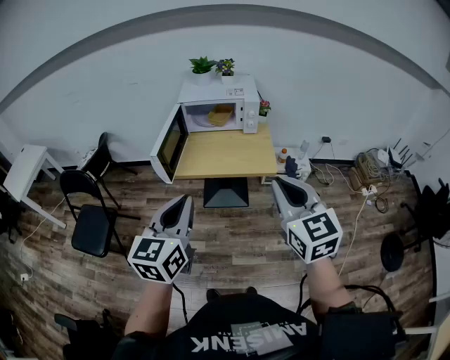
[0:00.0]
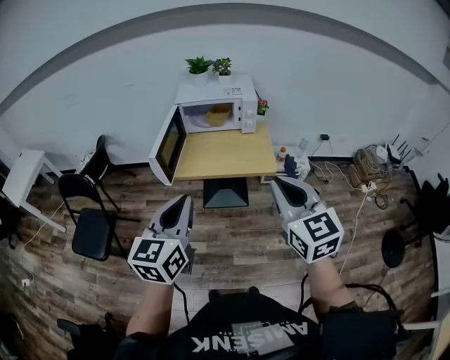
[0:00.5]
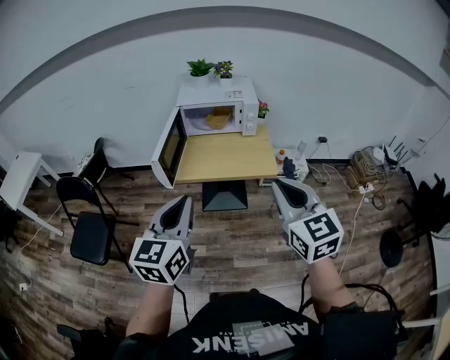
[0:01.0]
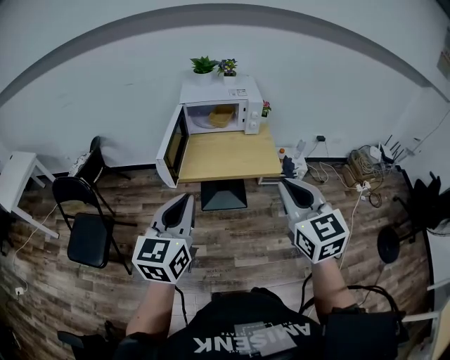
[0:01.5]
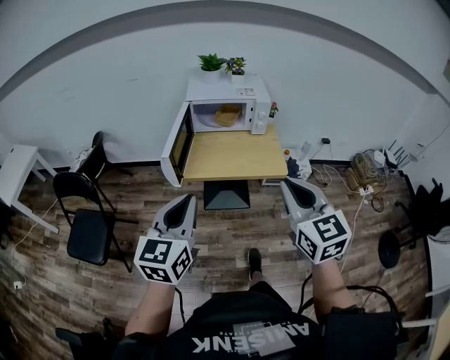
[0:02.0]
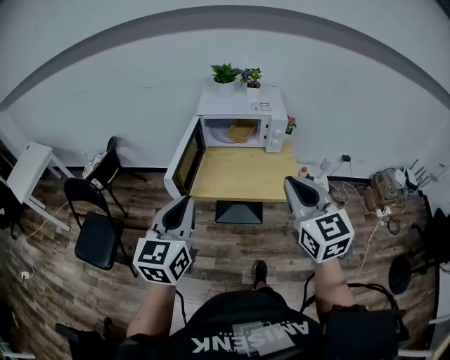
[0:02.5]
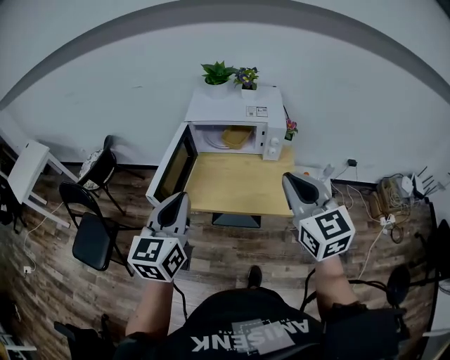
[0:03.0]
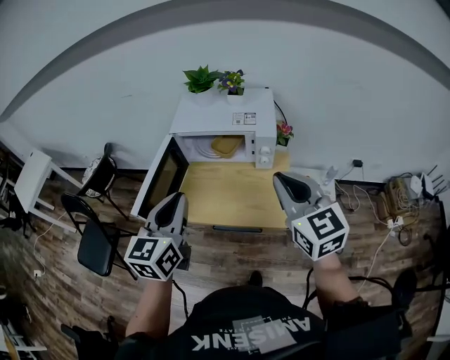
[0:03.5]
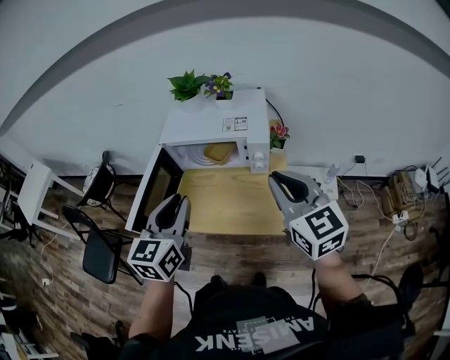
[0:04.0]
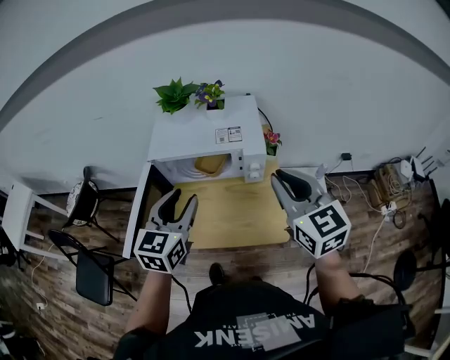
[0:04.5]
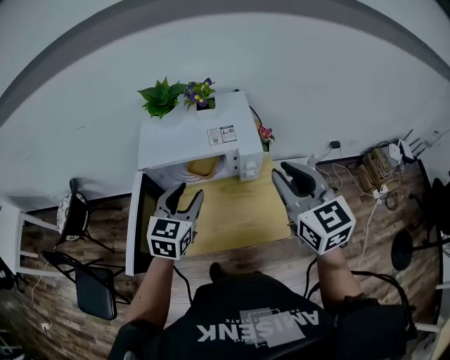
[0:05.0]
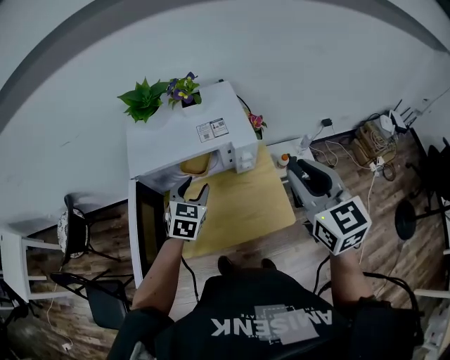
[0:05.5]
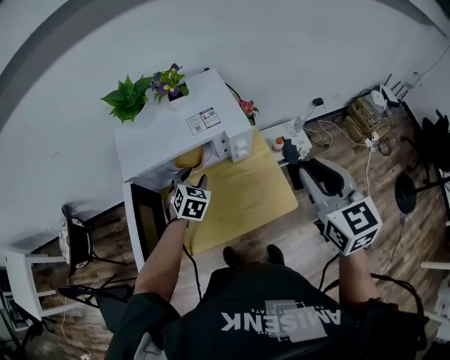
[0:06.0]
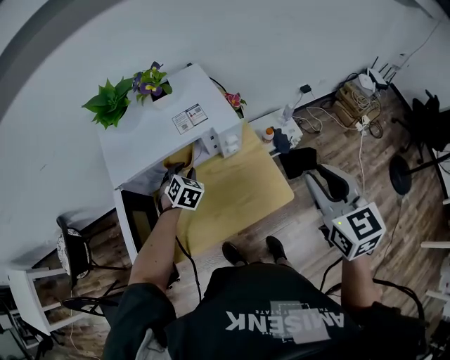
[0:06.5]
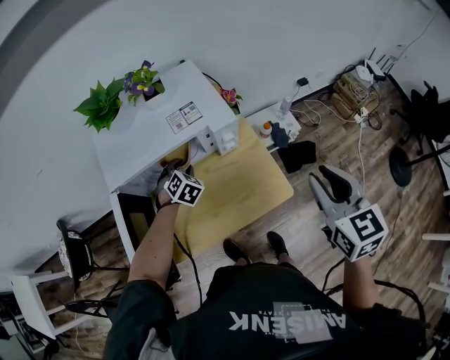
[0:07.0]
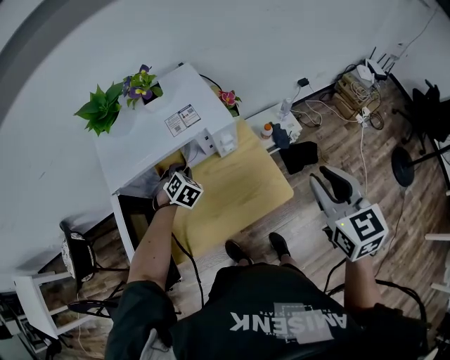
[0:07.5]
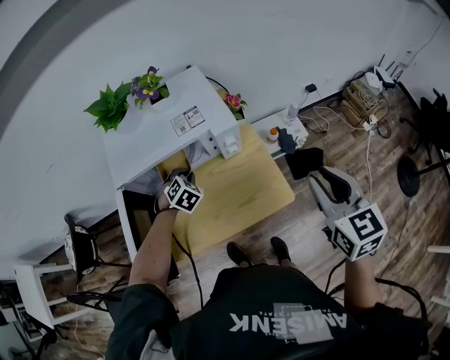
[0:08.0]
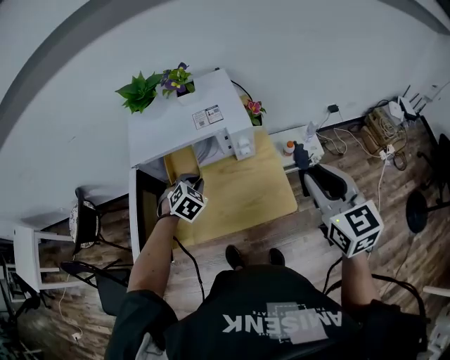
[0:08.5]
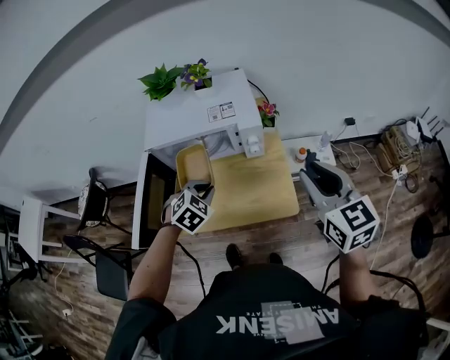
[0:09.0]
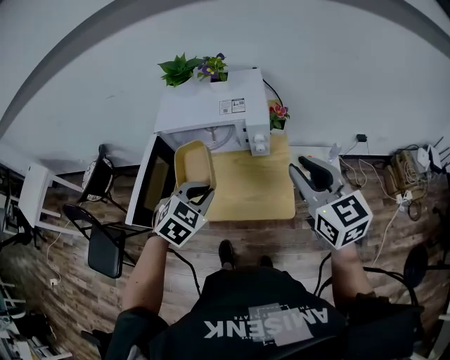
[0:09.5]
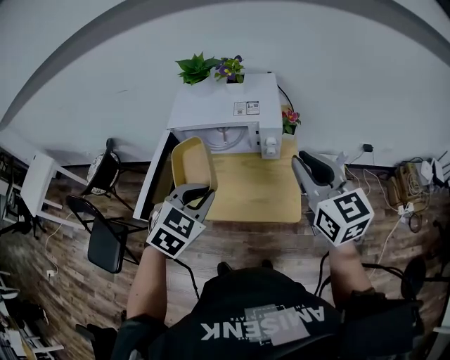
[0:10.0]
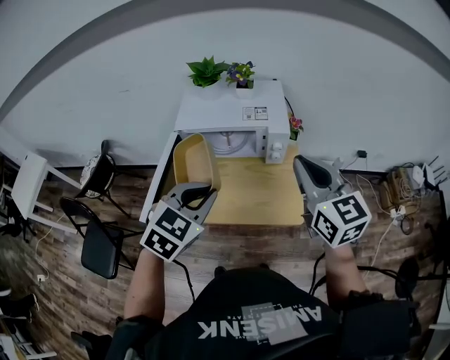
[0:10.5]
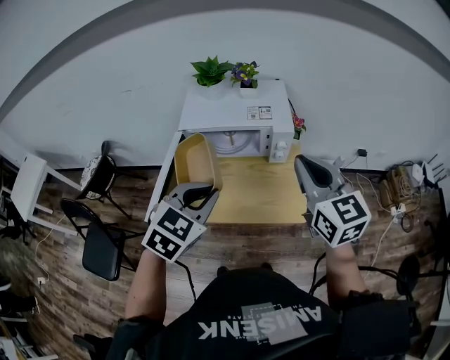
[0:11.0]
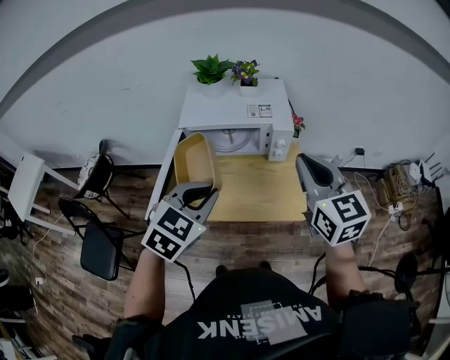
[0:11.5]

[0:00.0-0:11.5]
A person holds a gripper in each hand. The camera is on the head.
0:00.0 to 0:02.0: Both grippers travel together to the left, about 5 cm.
0:02.0 to 0:04.0: Both grippers move forward and to the right, some 35 cm.
0:04.0 to 0:06.0: The left gripper shifts about 35 cm downward and forward, tips its fingers downward by approximately 30 degrees, and opens, while the right gripper ends up about 5 cm from where it was, and swivels approximately 30 degrees.
0:06.0 to 0:07.5: The left gripper travels downward by about 5 cm, changes its angle by about 20 degrees, and closes its fingers; the right gripper changes place by some 5 cm.
0:07.5 to 0:09.5: The left gripper is displaced backward and upward by roughly 30 cm, and turns by some 20 degrees. Meanwhile the right gripper goes approximately 5 cm upward, and changes its angle by roughly 40 degrees.
0:09.5 to 0:11.5: The left gripper goes some 10 cm upward and to the left; the right gripper travels to the left by some 10 cm, and closes its fingers.

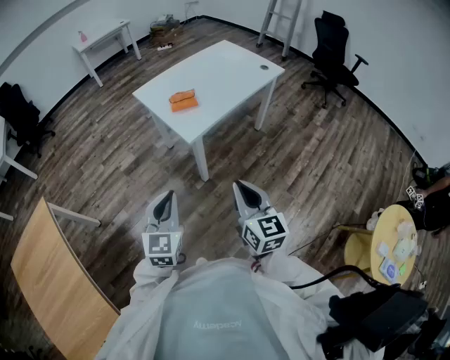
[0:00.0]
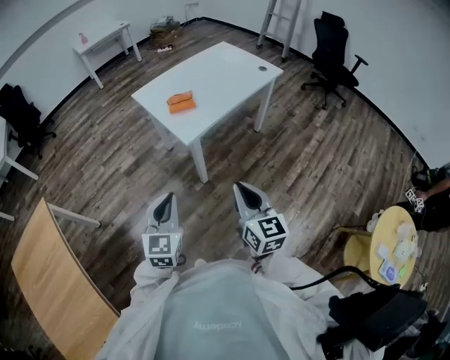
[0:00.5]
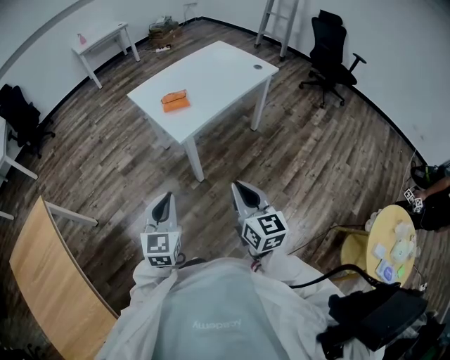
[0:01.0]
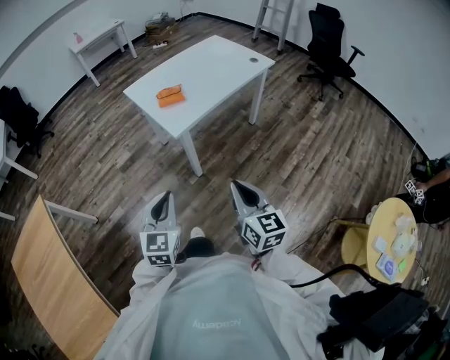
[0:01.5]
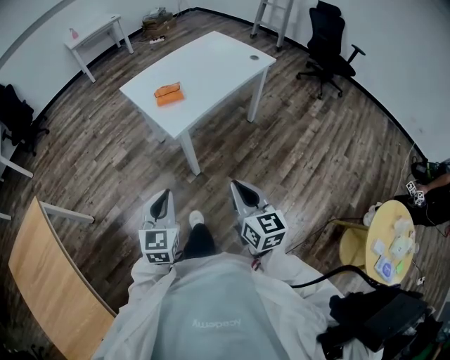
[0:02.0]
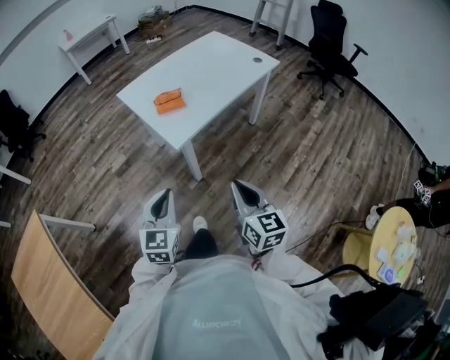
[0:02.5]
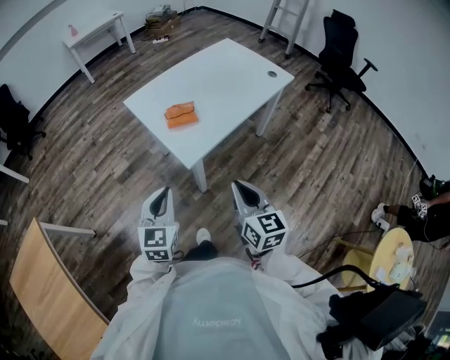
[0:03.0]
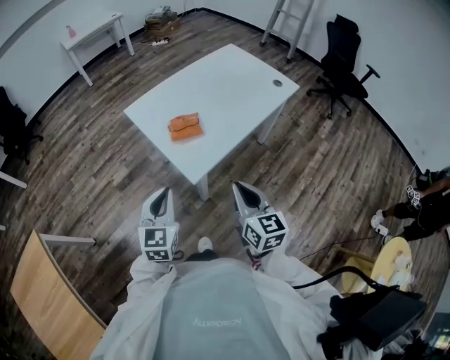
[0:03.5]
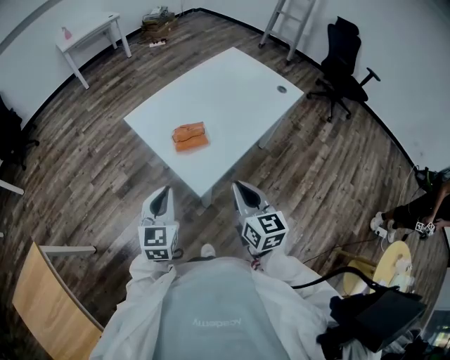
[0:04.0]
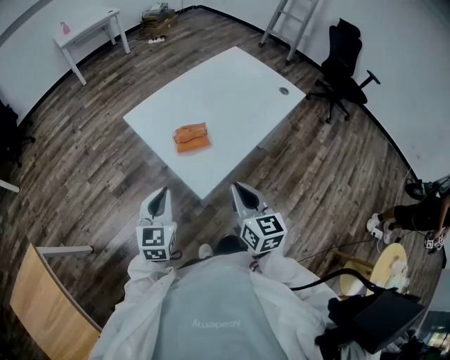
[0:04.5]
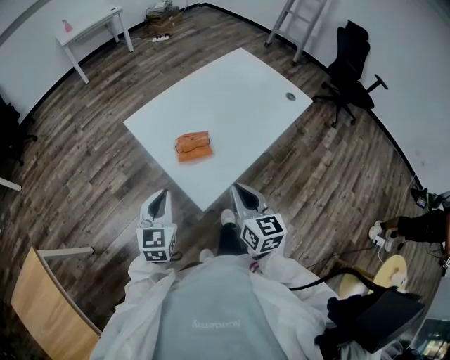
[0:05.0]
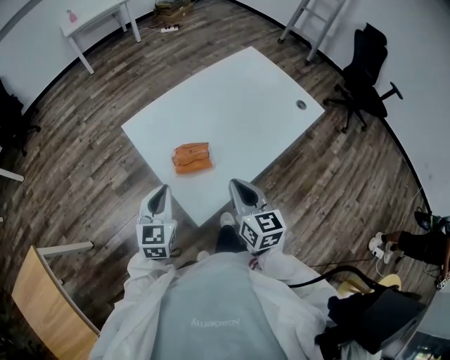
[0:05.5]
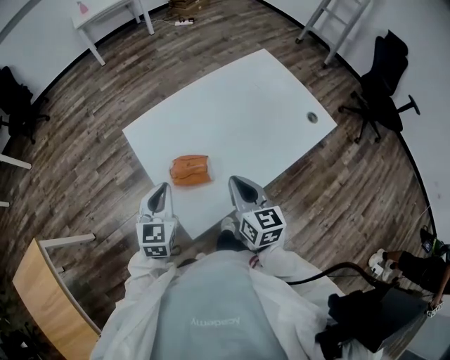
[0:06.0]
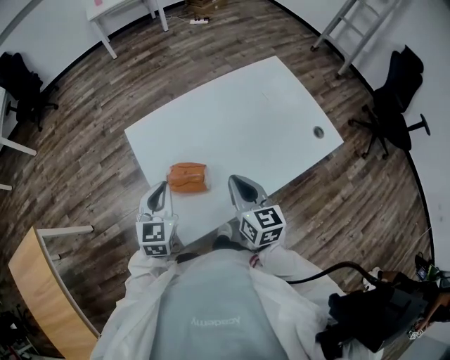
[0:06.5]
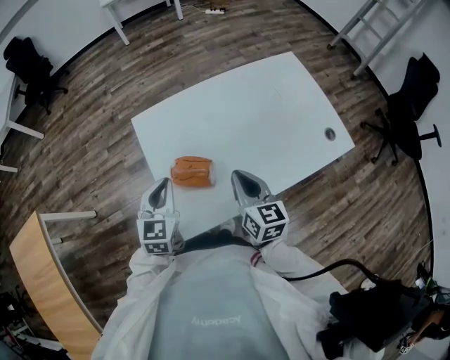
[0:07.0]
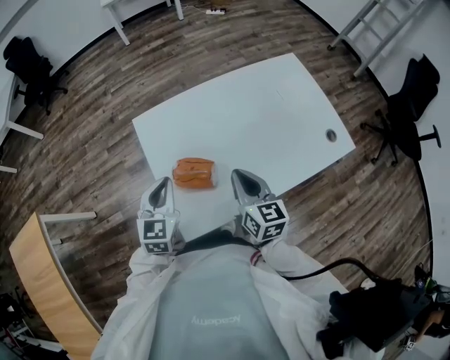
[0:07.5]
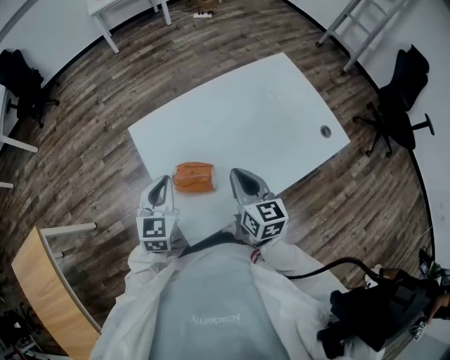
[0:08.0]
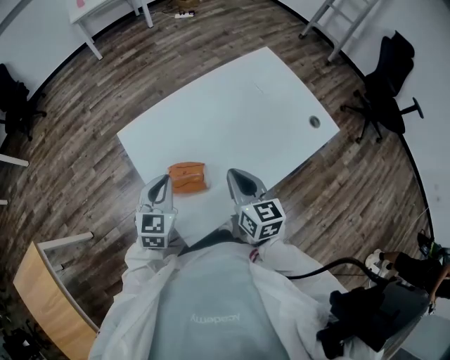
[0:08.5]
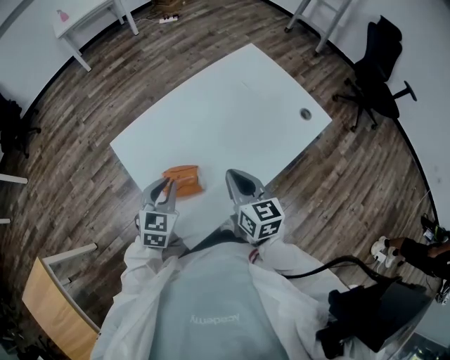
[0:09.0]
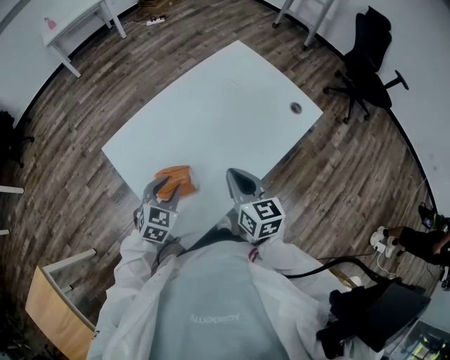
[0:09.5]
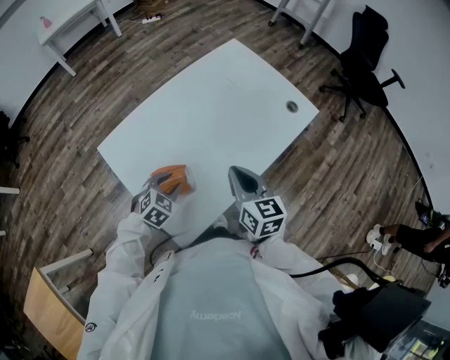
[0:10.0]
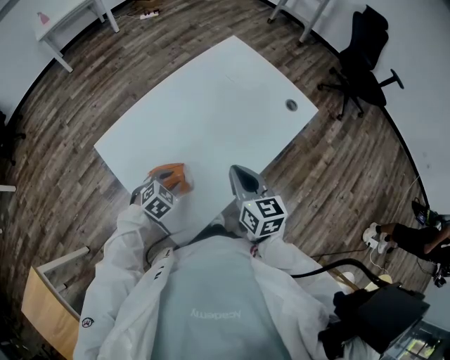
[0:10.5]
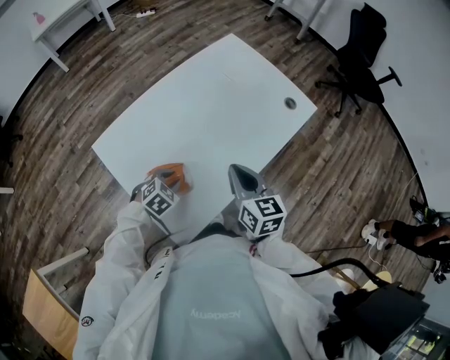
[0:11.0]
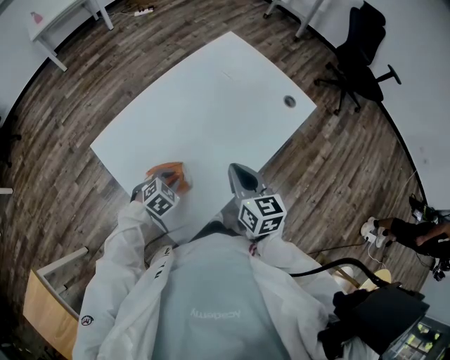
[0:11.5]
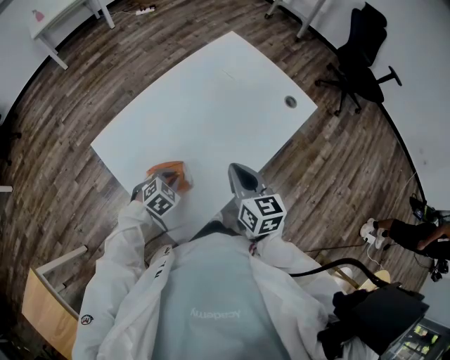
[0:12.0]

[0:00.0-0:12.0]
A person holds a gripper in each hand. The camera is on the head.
0:00.0 to 0:02.0: The right gripper changes place by roughly 5 cm.
0:02.0 to 0:04.0: The two grippers go approximately 25 cm forward.
0:04.0 to 0:06.0: The grippers both shift forward by approximately 15 cm.
0:06.0 to 0:08.0: The right gripper goes some 5 cm forward.
0:08.0 to 0:10.0: The right gripper moves to the right, roughly 5 cm, while the left gripper heads downward and to the right, covering about 15 cm, turns by some 50 degrees, and opens up.
0:10.0 to 0:12.0: The left gripper closes.

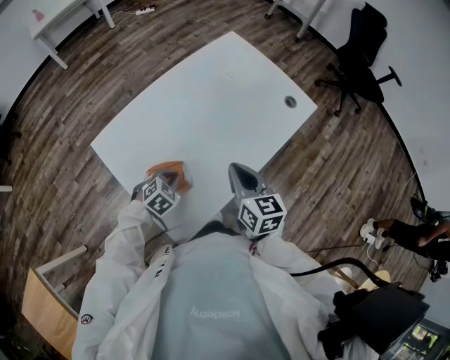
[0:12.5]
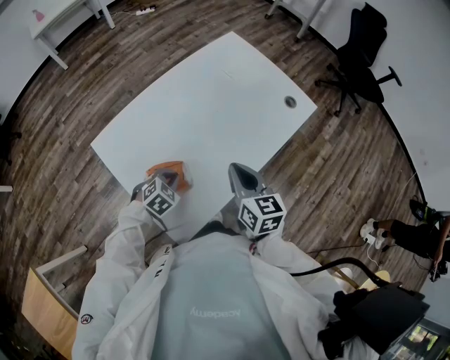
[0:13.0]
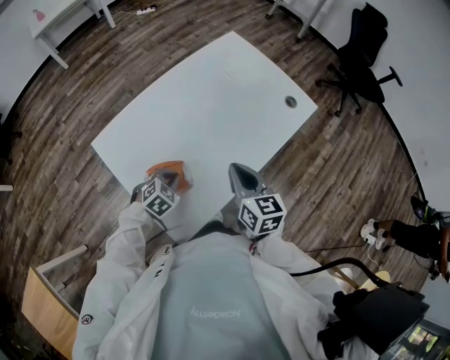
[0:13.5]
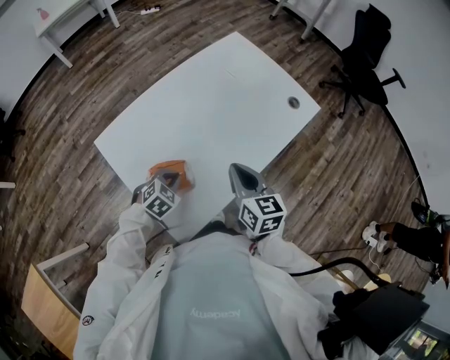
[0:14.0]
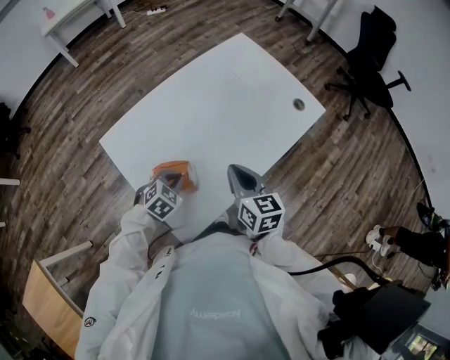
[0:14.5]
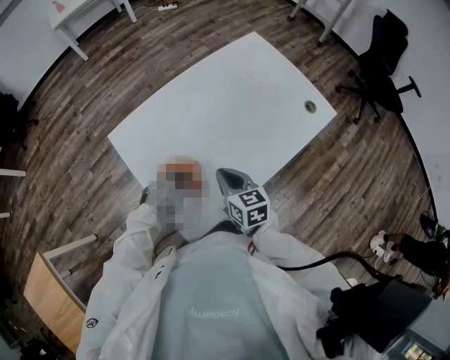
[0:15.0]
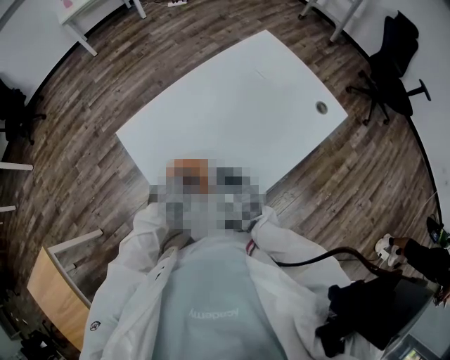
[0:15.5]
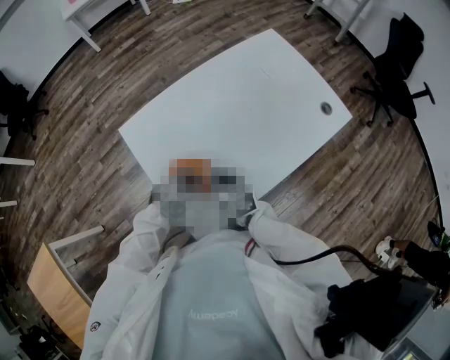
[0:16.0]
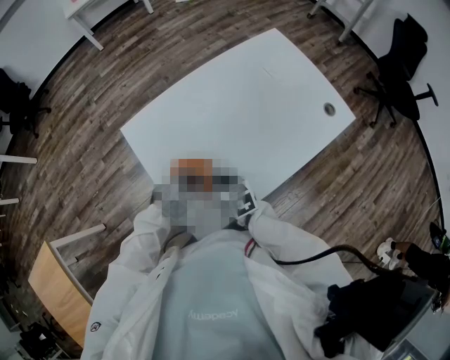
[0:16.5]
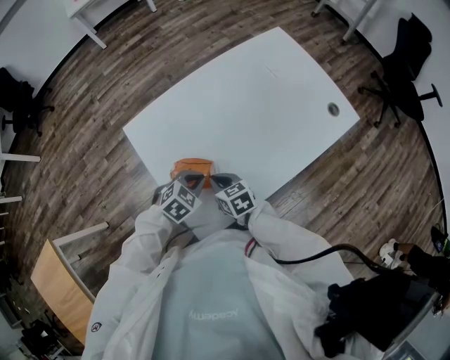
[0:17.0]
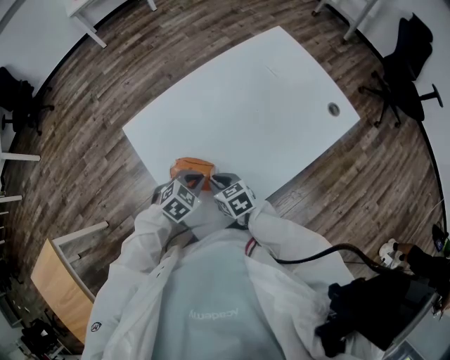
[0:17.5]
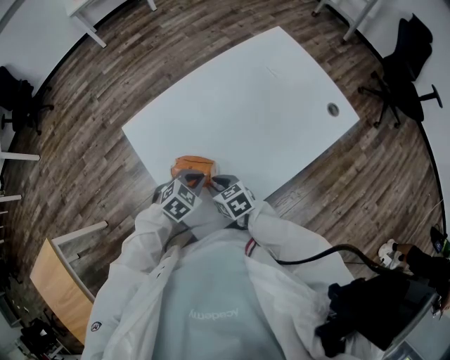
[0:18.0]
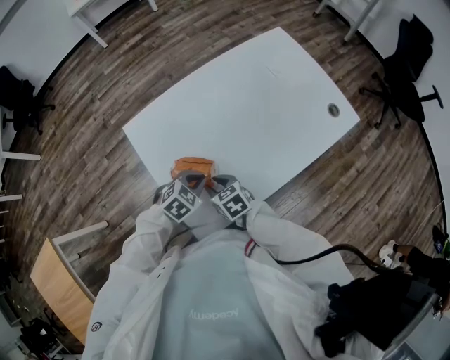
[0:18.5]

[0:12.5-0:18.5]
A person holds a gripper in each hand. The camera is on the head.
0:12.5 to 0:14.5: There are only small adjustments of the grippers.
0:14.5 to 0:16.5: The right gripper goes some 20 cm downward and to the left, and rotates some 30 degrees.
0:16.5 to 0:18.5: The right gripper opens its fingers.
